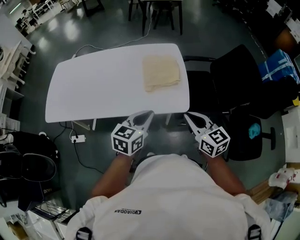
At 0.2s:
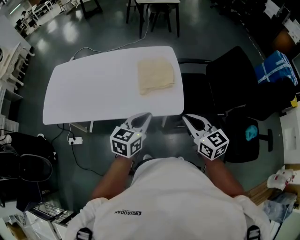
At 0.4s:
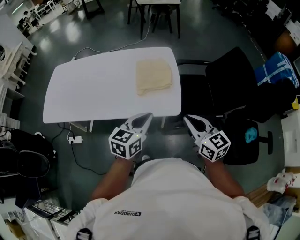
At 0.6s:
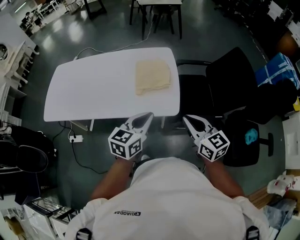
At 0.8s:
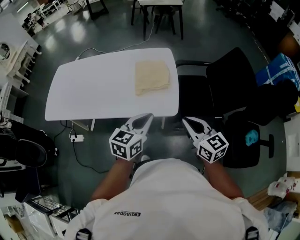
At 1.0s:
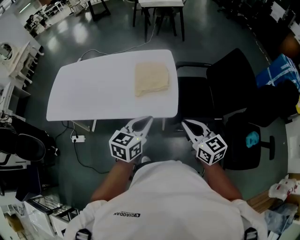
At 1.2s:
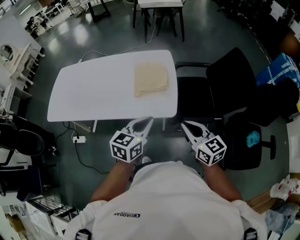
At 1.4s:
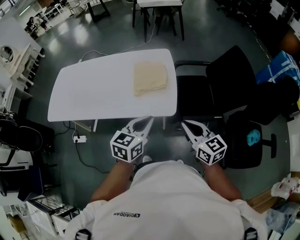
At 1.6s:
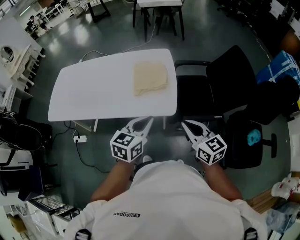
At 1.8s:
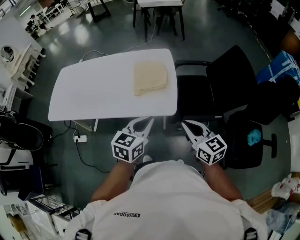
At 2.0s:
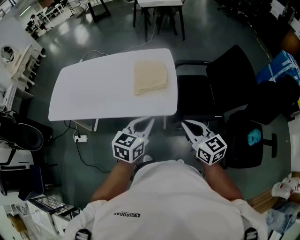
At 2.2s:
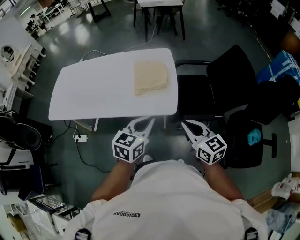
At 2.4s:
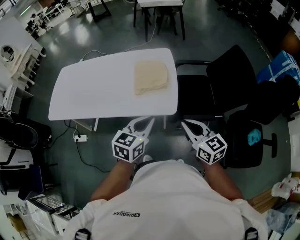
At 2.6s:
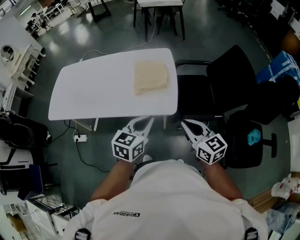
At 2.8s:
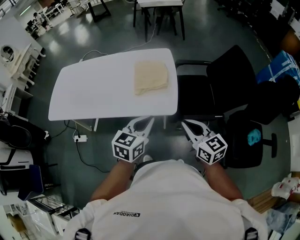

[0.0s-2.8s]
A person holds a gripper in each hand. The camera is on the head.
0.0s to 1.4s: The grippers both shift to the right by about 10 cm.
1.4s to 2.8s: Both grippers stay about where they are.

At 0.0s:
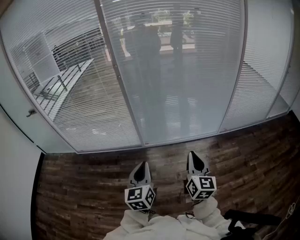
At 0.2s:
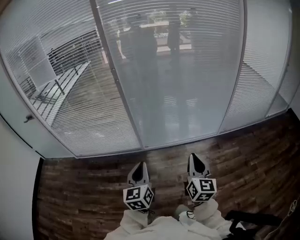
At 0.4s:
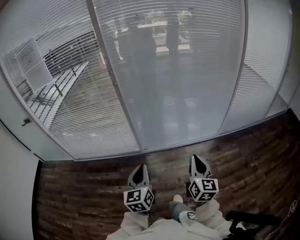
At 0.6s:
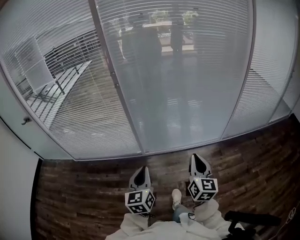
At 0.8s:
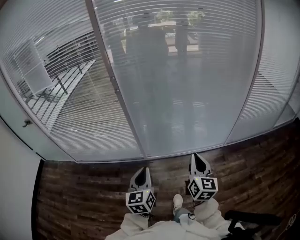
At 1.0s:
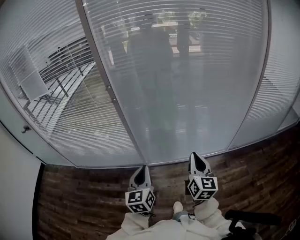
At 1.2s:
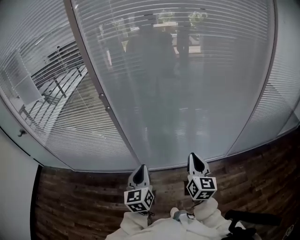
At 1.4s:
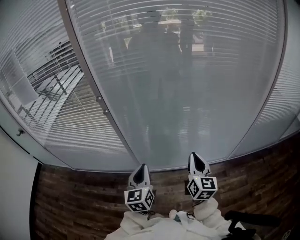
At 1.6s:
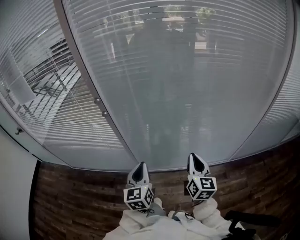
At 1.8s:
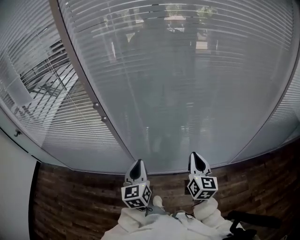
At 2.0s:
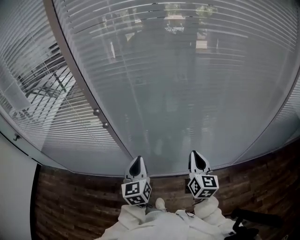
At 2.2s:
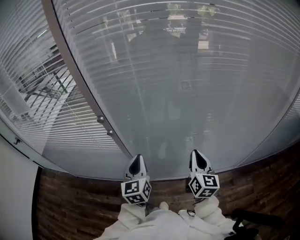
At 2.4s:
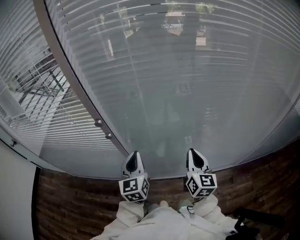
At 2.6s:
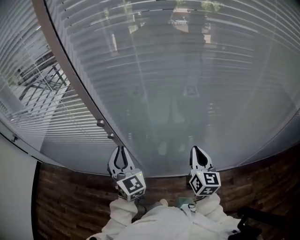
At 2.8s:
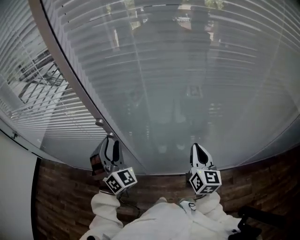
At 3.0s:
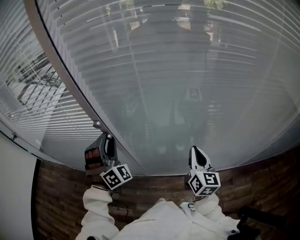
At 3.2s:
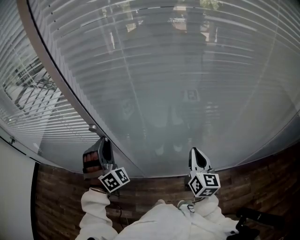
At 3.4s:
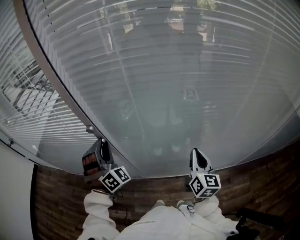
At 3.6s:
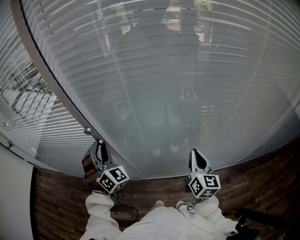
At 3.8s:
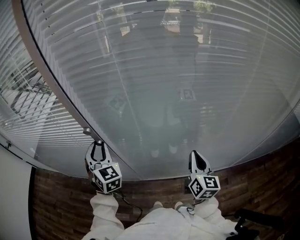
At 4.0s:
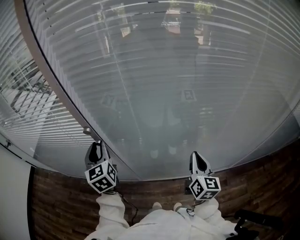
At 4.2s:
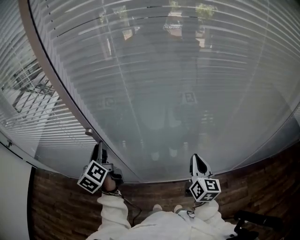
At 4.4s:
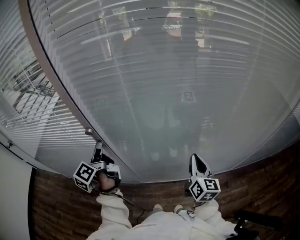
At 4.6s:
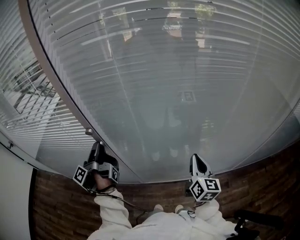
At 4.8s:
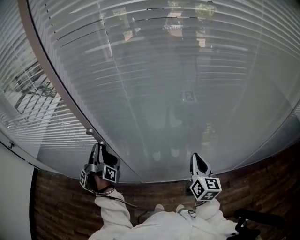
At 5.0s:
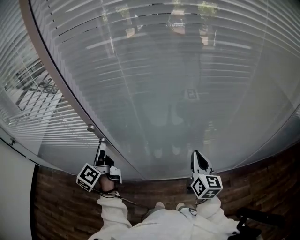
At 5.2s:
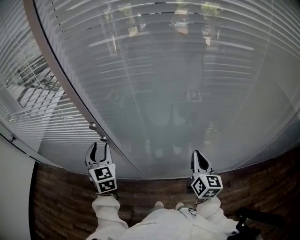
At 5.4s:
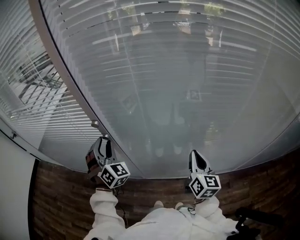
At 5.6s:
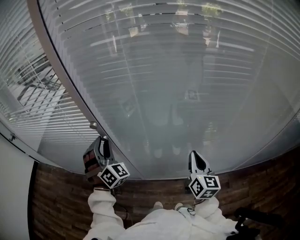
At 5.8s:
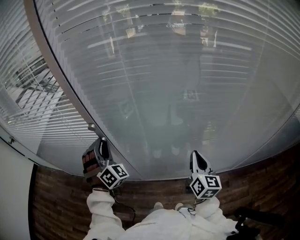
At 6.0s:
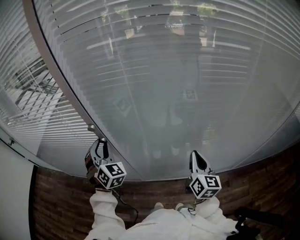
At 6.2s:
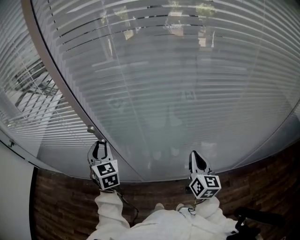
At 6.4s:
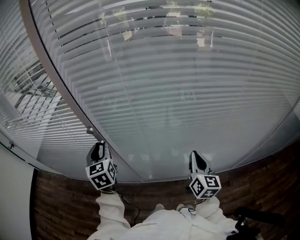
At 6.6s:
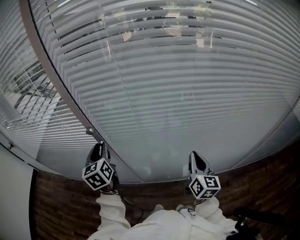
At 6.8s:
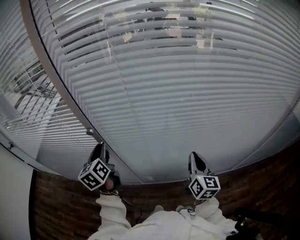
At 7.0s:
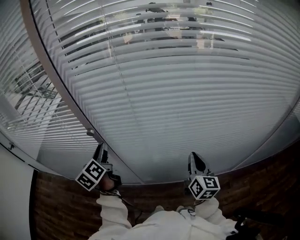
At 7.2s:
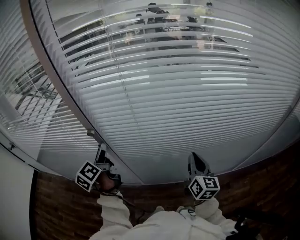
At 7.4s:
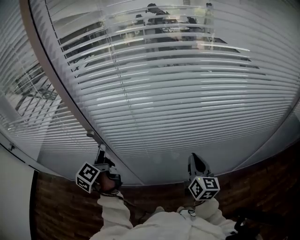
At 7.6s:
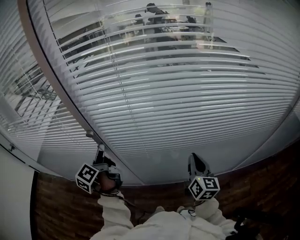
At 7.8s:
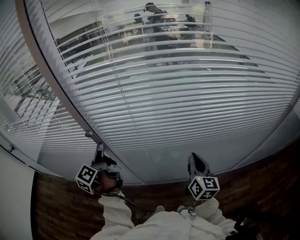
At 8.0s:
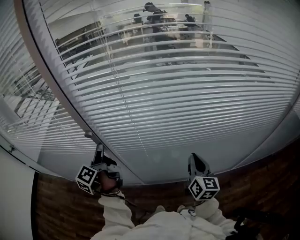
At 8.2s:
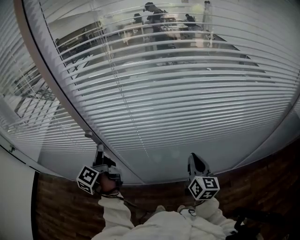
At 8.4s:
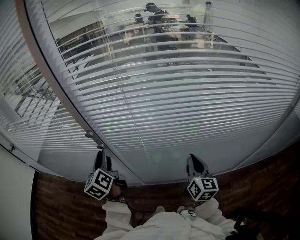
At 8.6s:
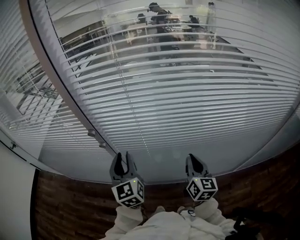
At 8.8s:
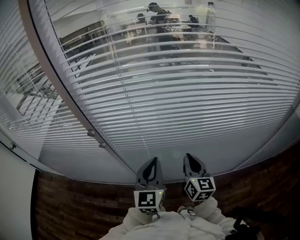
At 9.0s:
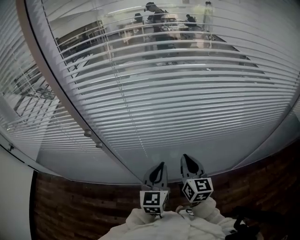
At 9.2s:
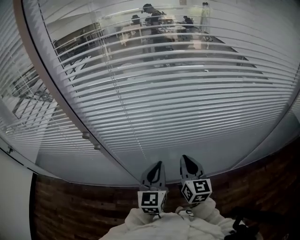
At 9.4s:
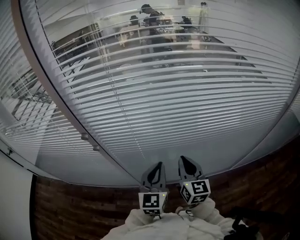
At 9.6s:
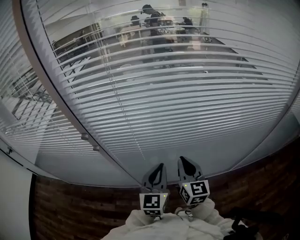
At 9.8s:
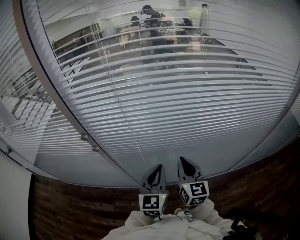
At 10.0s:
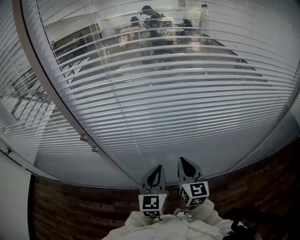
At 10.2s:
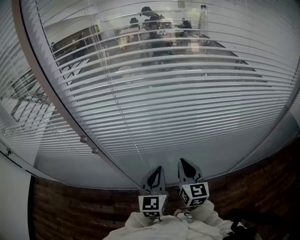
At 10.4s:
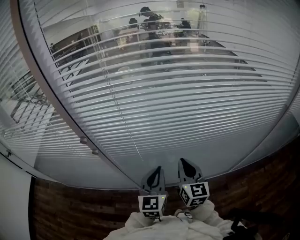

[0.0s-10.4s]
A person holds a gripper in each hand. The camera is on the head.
0.0s to 1.4s: The grippers both shift forward by roughly 40 cm.
1.4s to 3.0s: The left gripper is displaced forward and to the left by roughly 35 cm, rotates around the line of its fingers by roughly 80 degrees, clockwise from behind, and opens up; the right gripper travels forward by some 25 cm.
3.0s to 4.4s: The left gripper twists approximately 140 degrees counterclockwise, seen from behind.
4.4s to 6.0s: The left gripper rotates around the line of its fingers by some 110 degrees, clockwise from behind.
6.0s to 7.4s: The left gripper twists approximately 100 degrees counterclockwise, seen from behind.
7.4s to 9.0s: The left gripper moves to the right, roughly 25 cm, rolls clockwise, seen from behind, by roughly 50 degrees, and closes.
9.0s to 10.4s: The grippers move only a little.

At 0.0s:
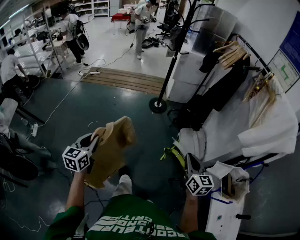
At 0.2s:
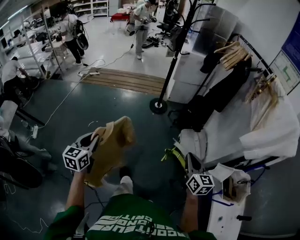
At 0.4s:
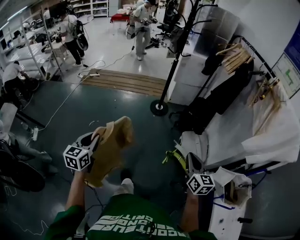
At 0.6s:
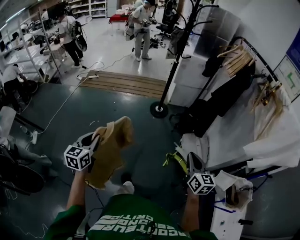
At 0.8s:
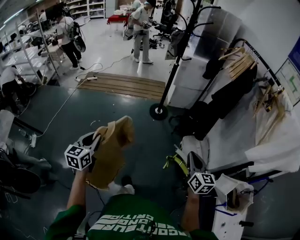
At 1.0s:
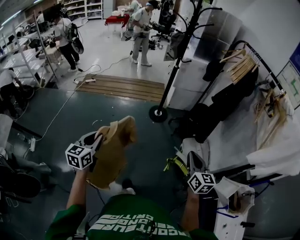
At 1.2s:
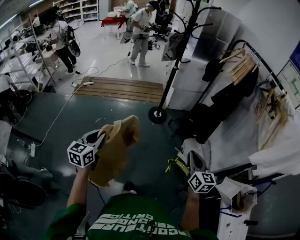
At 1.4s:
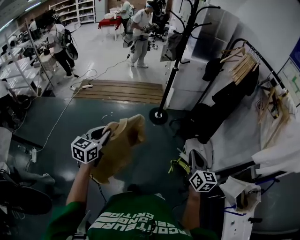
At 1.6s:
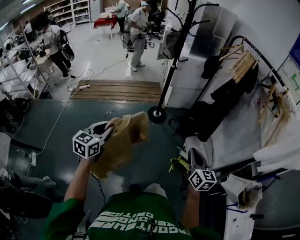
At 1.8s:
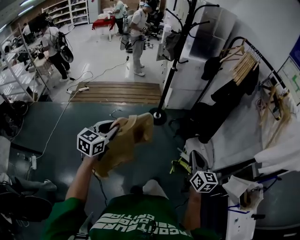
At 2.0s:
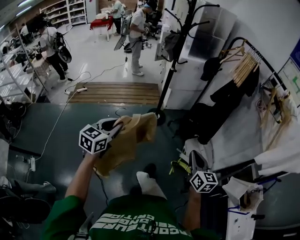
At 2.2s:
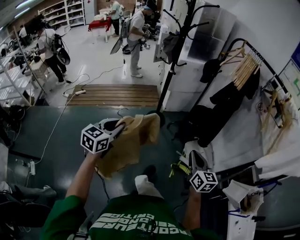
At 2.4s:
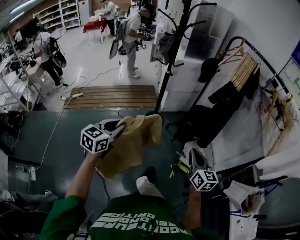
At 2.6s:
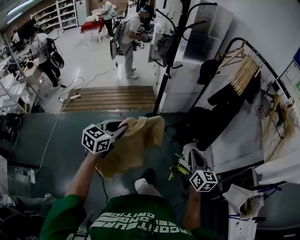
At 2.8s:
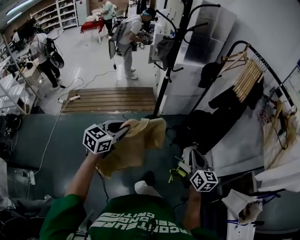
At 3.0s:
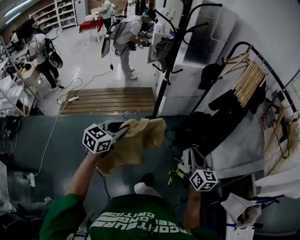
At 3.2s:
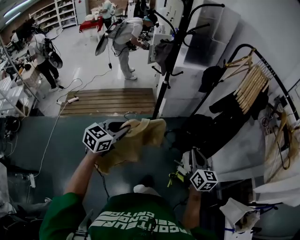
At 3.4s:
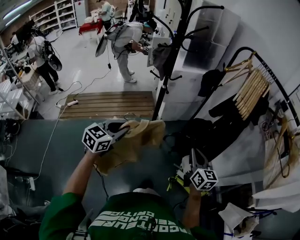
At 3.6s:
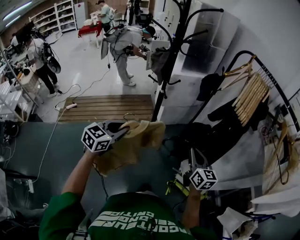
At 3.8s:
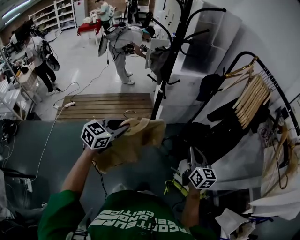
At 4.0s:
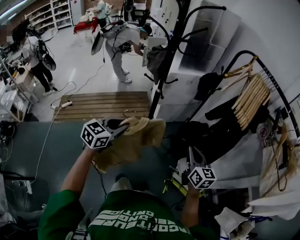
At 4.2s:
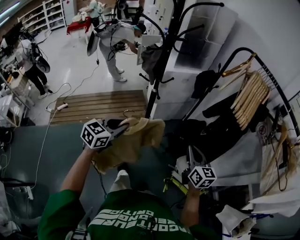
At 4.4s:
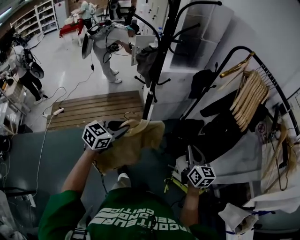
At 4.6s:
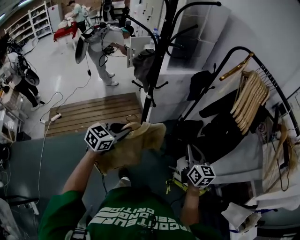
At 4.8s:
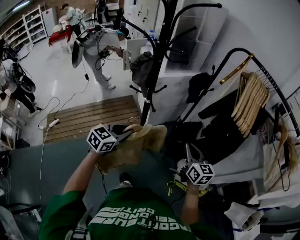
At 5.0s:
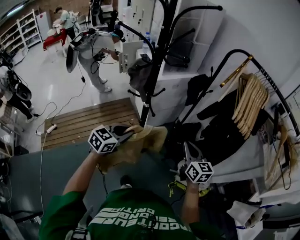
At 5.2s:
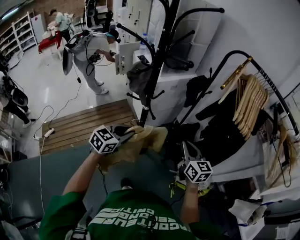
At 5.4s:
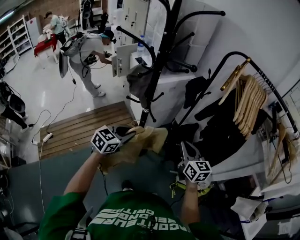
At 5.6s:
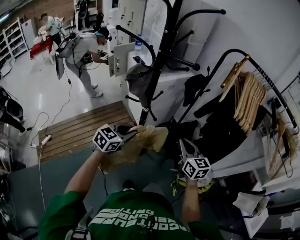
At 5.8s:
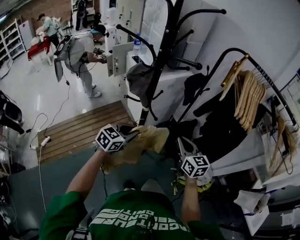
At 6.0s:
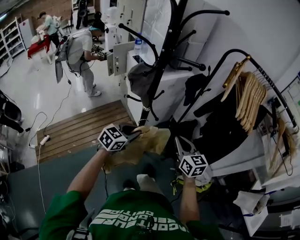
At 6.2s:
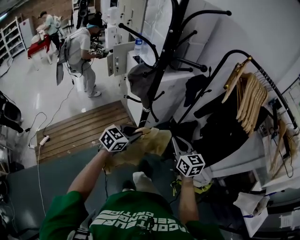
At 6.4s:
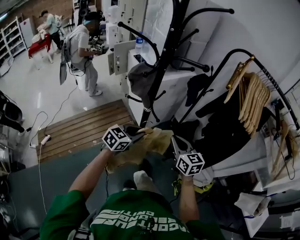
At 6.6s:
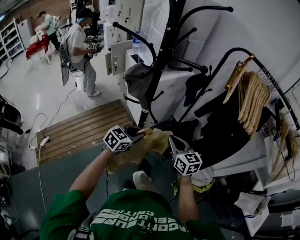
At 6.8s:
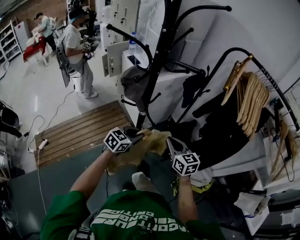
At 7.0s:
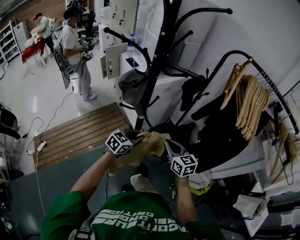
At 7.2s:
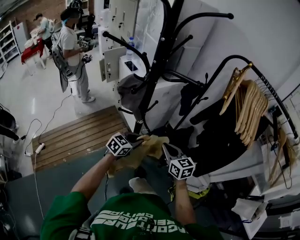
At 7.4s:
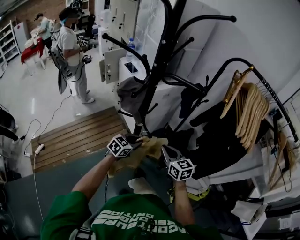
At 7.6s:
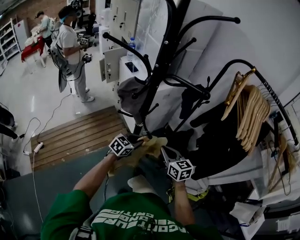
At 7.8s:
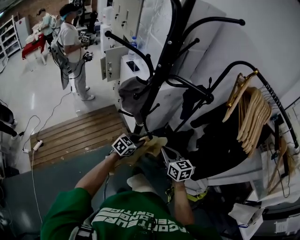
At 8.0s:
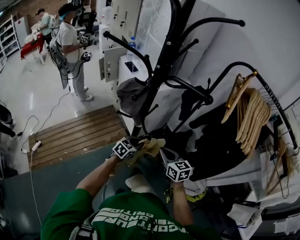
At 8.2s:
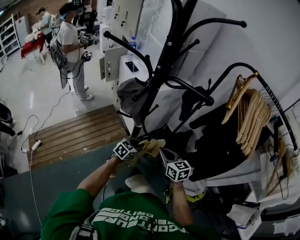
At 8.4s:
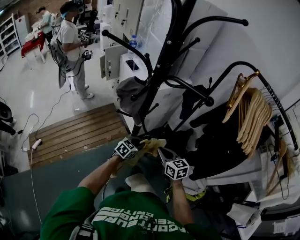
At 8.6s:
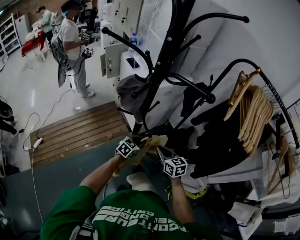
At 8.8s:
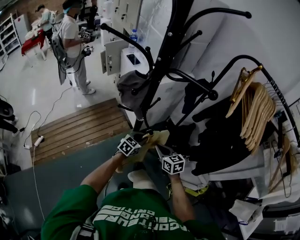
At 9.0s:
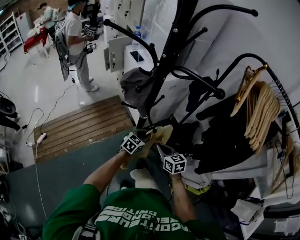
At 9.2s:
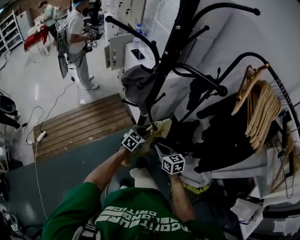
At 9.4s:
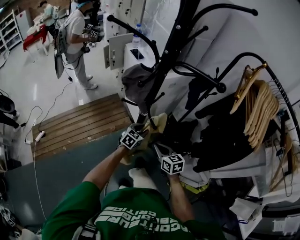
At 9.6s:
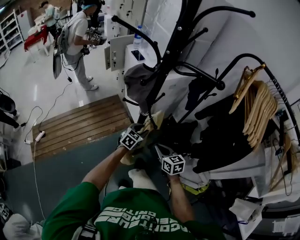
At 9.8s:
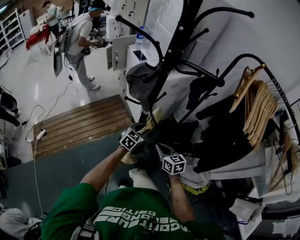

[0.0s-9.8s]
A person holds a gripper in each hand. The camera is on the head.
0.0s to 1.4s: The left gripper moves forward, approximately 25 cm, while the right gripper is displaced forward and to the left by roughly 20 cm.
1.4s to 2.8s: Both grippers travel together forward, some 20 cm. The left gripper turns by approximately 20 degrees.
2.8s to 4.2s: The two grippers go about 20 cm forward.
4.2s to 5.6s: The right gripper is displaced to the left and forward by roughly 15 cm. The left gripper moves forward and to the left, about 15 cm, and rotates some 20 degrees.
5.6s to 7.0s: The right gripper is displaced downward, to the left and forward by roughly 10 cm; the left gripper shifts approximately 15 cm forward and downward.
7.0s to 8.4s: The right gripper is displaced downward by about 5 cm. Meanwhile the left gripper travels downward and forward by about 15 cm.
8.4s to 9.8s: The right gripper shifts by approximately 5 cm.
